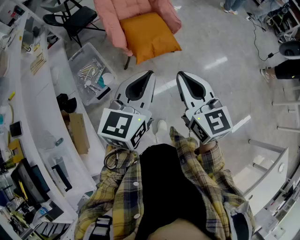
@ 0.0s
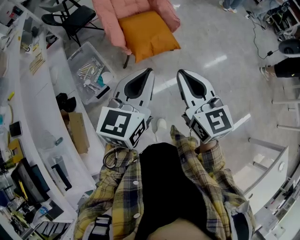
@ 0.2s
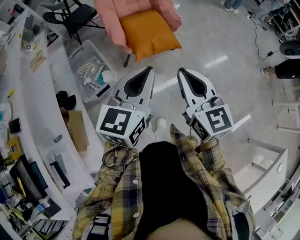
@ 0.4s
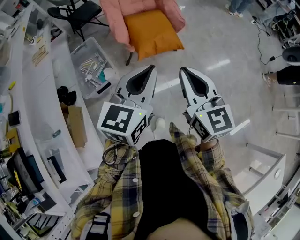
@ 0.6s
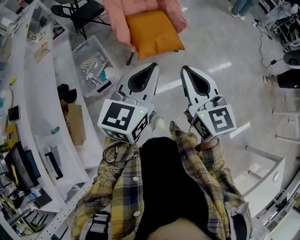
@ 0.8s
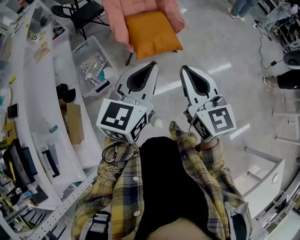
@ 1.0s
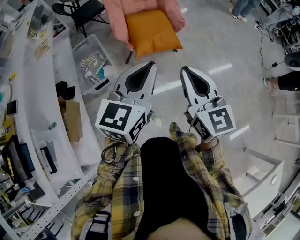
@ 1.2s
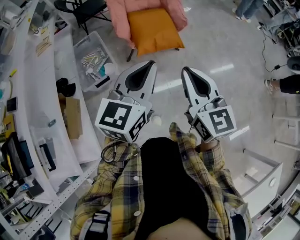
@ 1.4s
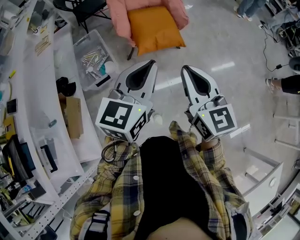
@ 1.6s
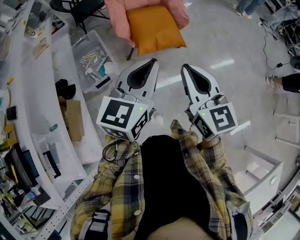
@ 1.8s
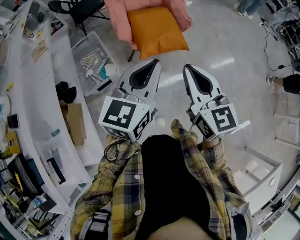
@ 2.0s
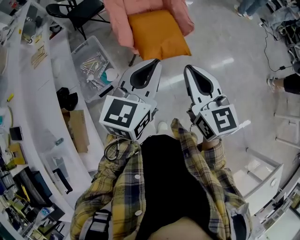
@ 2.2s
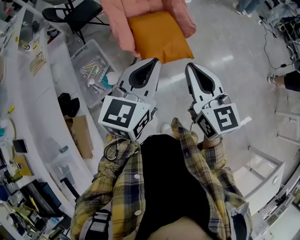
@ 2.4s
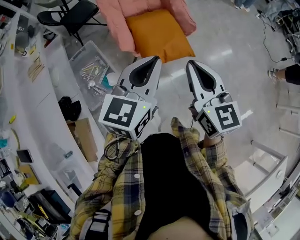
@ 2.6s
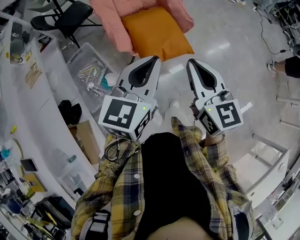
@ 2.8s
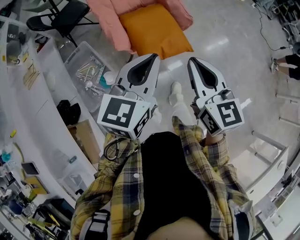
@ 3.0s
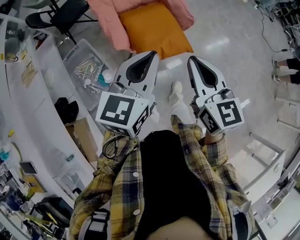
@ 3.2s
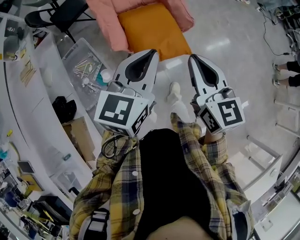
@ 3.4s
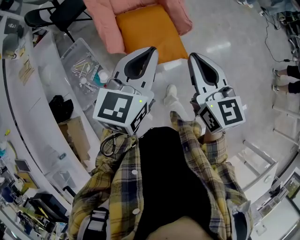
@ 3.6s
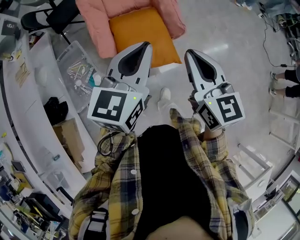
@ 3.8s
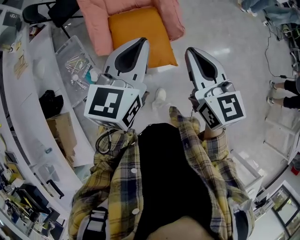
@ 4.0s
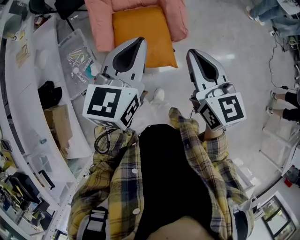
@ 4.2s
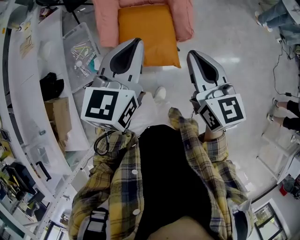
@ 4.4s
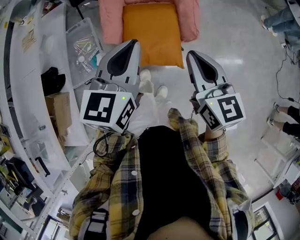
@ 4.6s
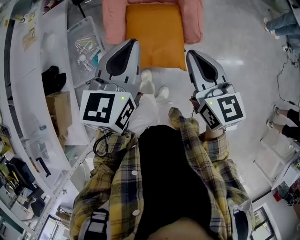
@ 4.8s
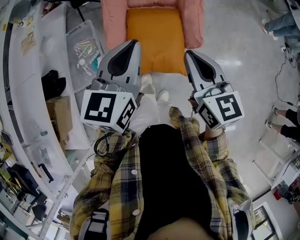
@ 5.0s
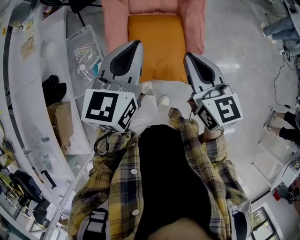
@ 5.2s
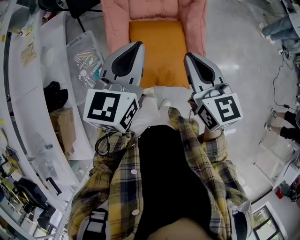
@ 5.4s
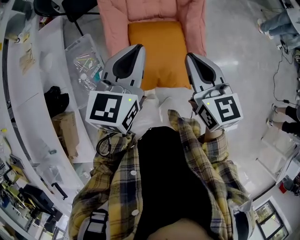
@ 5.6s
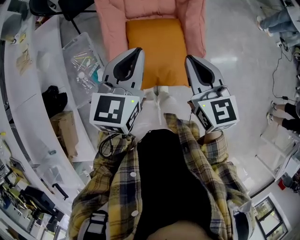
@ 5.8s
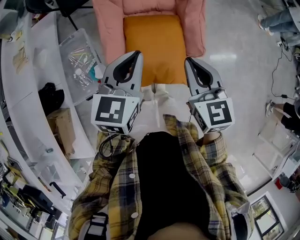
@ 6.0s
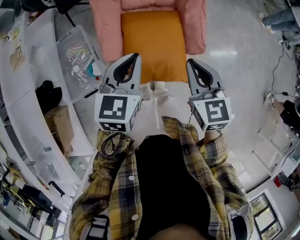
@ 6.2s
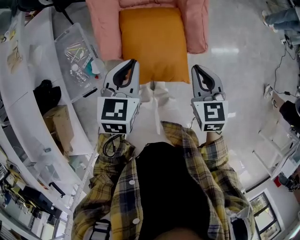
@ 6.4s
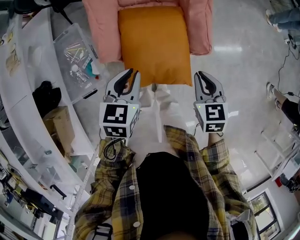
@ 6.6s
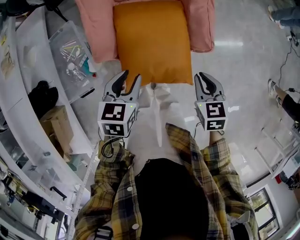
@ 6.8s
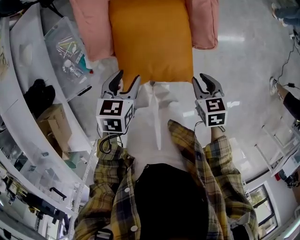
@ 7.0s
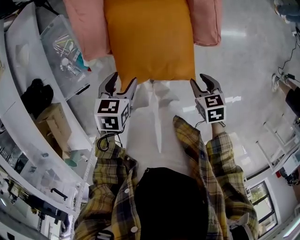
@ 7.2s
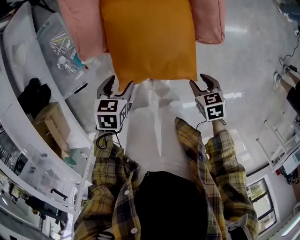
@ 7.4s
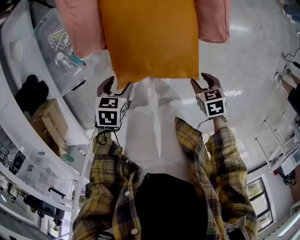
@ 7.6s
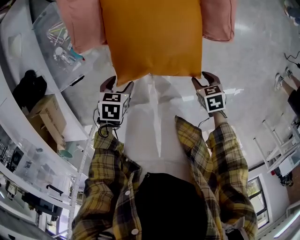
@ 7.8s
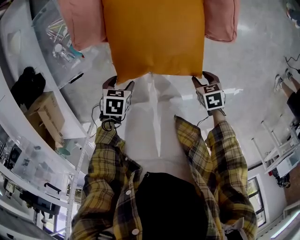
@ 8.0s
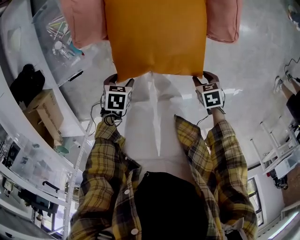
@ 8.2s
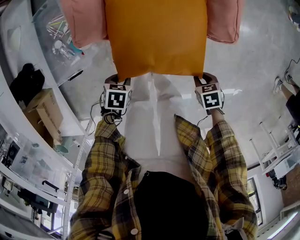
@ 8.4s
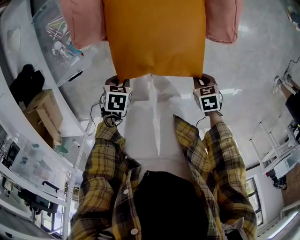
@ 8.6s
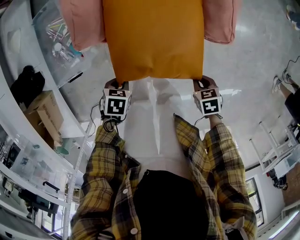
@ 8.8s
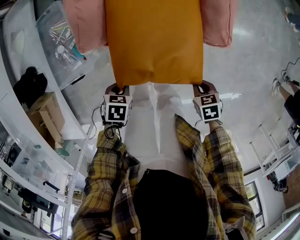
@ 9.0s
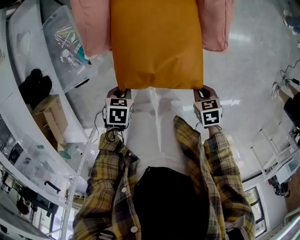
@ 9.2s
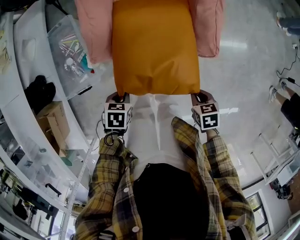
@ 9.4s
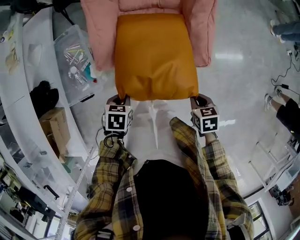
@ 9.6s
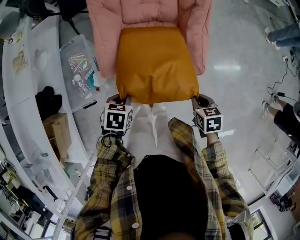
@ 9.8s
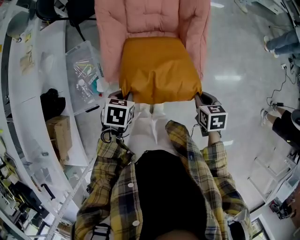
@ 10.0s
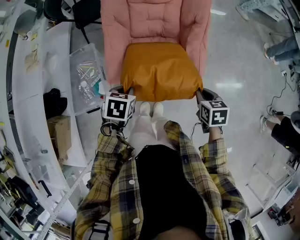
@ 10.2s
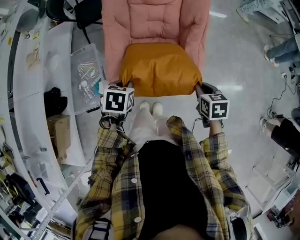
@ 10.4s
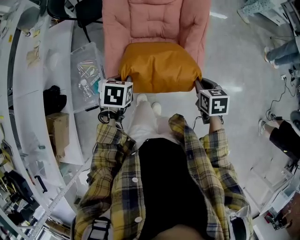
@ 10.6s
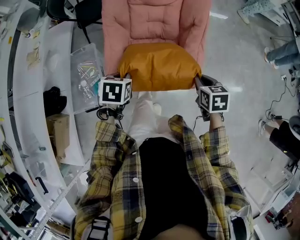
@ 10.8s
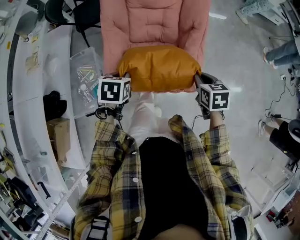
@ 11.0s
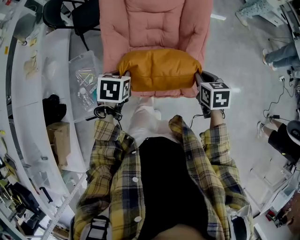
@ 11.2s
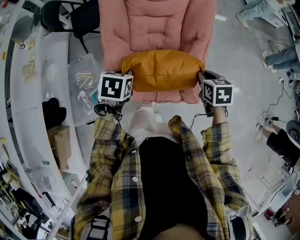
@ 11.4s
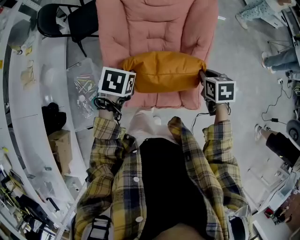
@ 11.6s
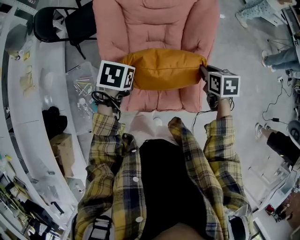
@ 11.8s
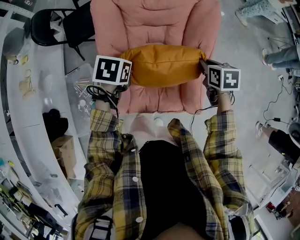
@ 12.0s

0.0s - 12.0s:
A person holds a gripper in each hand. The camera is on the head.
0.0s - 1.6s: There are only small adjustments of the grippers.
1.6s - 3.0s: Both grippers move forward and to the left, about 25 cm.
3.0s - 4.4s: Both grippers travel together forward and to the right, some 20 cm. The left gripper turns by some 20 degrees.
4.4s - 6.0s: The two grippers go about 15 cm forward, to the left and downward.
6.0s - 7.6s: Both grippers travel together downward, approximately 40 cm. The right gripper angles its fingers downward, by about 50 degrees, and opens its fingers; the left gripper tips its fingers downward by approximately 40 degrees, and opens.
7.6s - 9.0s: The right gripper closes; the left gripper travels downward and back again, some 10 cm each way, and closes.
9.0s - 10.4s: Both grippers travel together upward, some 30 cm. The left gripper rotates approximately 20 degrees; the right gripper swivels roughly 30 degrees.
10.4s - 12.0s: The two grippers go approximately 30 cm forward.

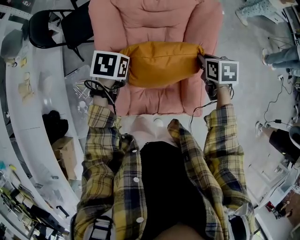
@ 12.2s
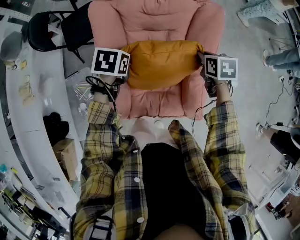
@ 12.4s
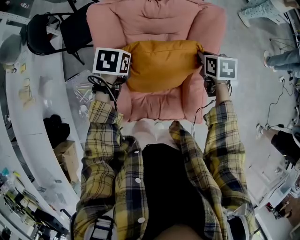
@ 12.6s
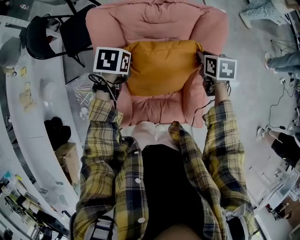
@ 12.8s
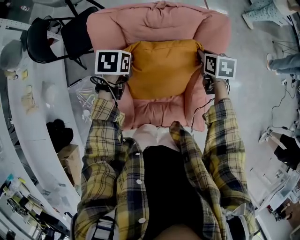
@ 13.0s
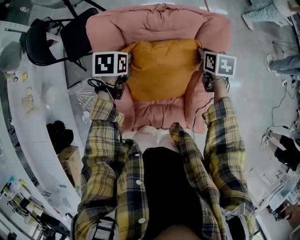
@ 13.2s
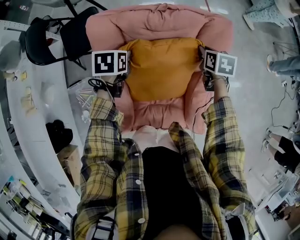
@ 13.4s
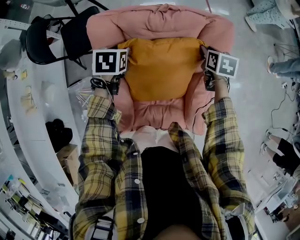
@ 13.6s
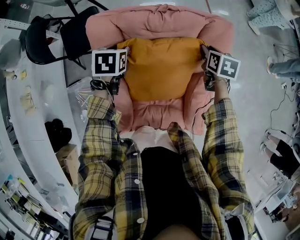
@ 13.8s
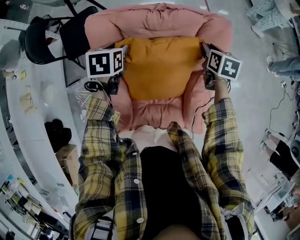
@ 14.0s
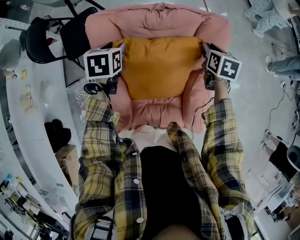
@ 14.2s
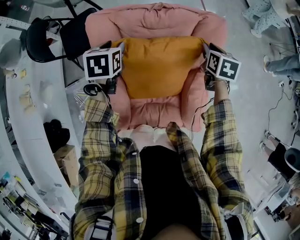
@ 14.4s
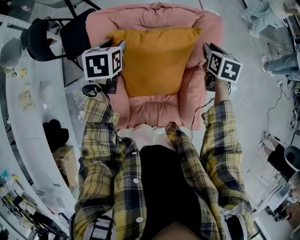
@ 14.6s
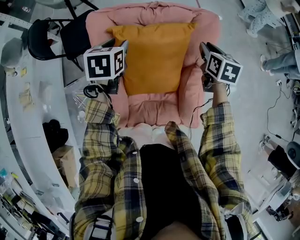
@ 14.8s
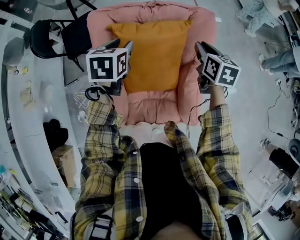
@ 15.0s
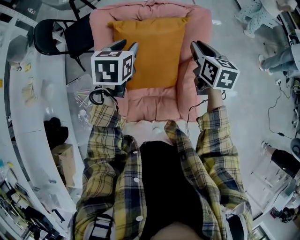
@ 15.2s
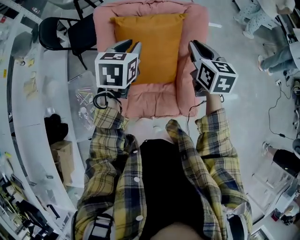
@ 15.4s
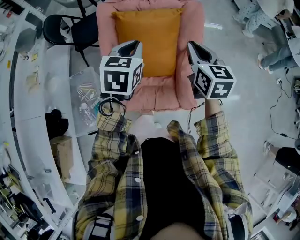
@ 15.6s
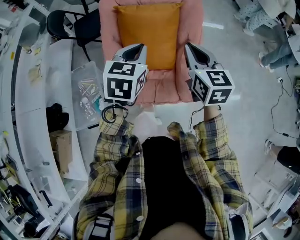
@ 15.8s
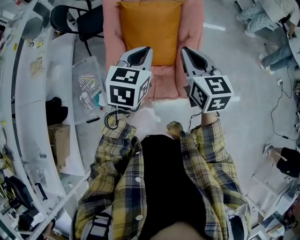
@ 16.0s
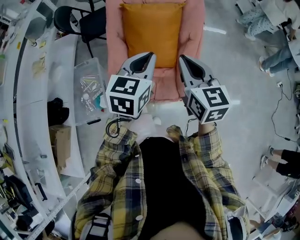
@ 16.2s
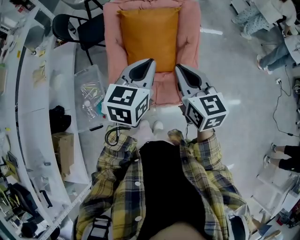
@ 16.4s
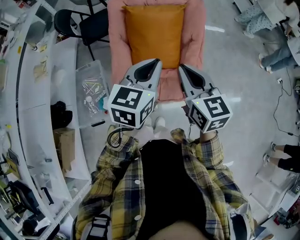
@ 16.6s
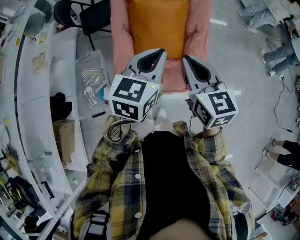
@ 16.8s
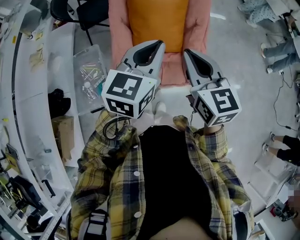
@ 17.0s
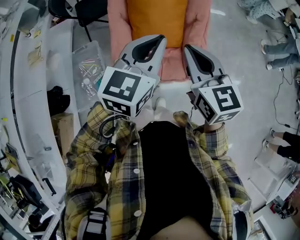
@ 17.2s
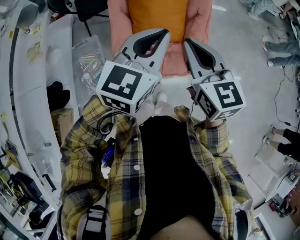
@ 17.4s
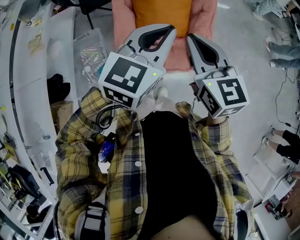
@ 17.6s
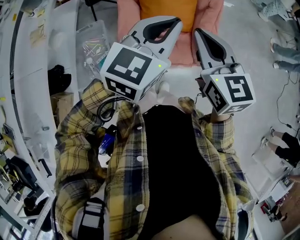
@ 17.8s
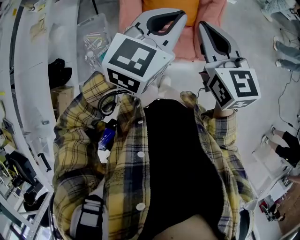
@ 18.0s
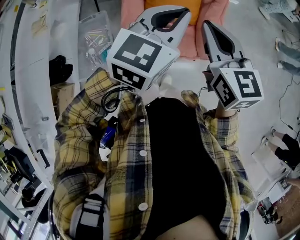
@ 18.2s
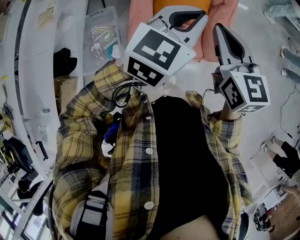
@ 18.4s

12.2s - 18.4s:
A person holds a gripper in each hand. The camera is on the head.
12.2s - 13.8s: The grippers both shift forward by about 20 cm. The left gripper opens up.
13.8s - 15.4s: The left gripper is displaced backward, upward and to the right by roughly 30 cm, and changes its angle by about 20 degrees, while the right gripper travels backward and upward by about 30 cm, and swivels some 30 degrees.
15.4s - 16.8s: The grippers both shift backward by approximately 25 cm.
16.8s - 18.4s: The grippers move only a little.

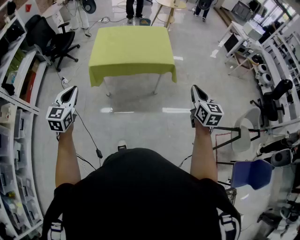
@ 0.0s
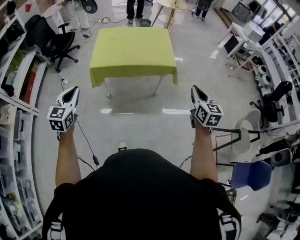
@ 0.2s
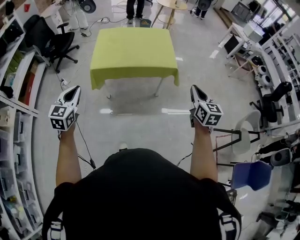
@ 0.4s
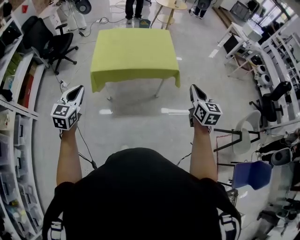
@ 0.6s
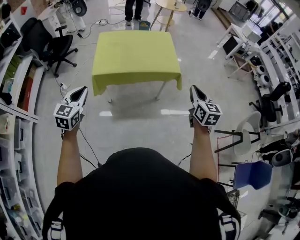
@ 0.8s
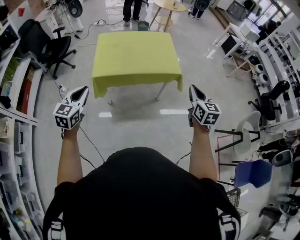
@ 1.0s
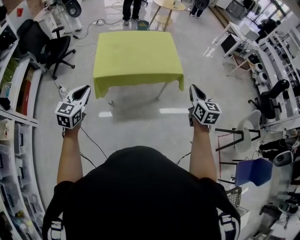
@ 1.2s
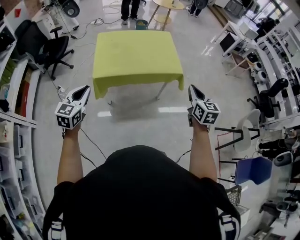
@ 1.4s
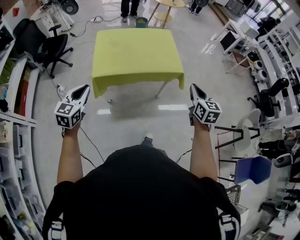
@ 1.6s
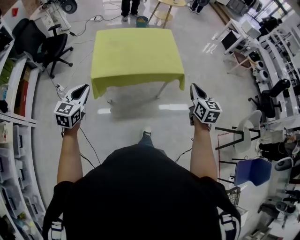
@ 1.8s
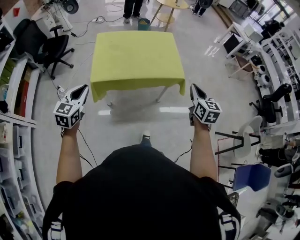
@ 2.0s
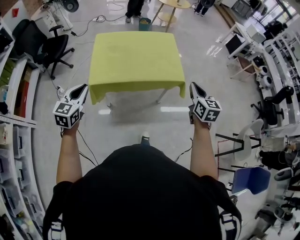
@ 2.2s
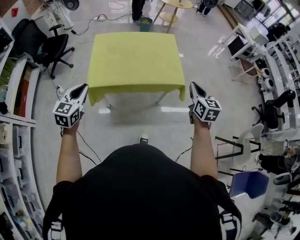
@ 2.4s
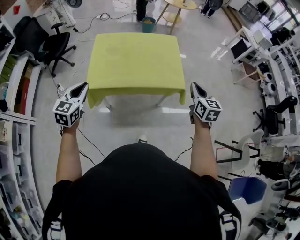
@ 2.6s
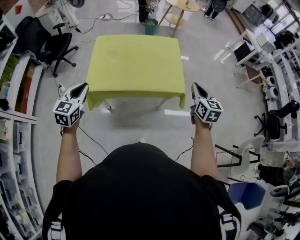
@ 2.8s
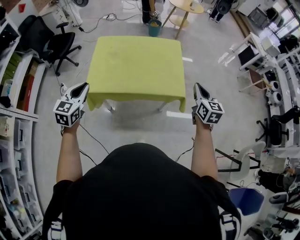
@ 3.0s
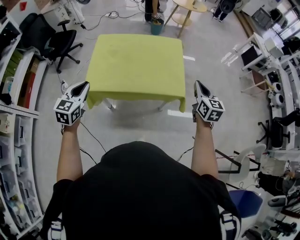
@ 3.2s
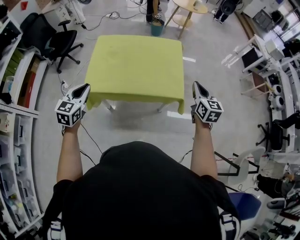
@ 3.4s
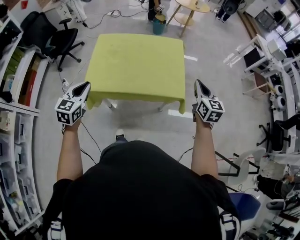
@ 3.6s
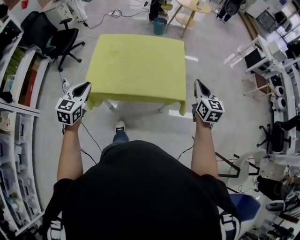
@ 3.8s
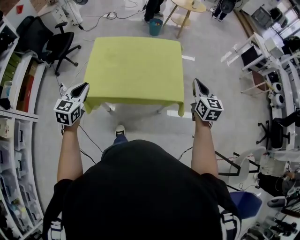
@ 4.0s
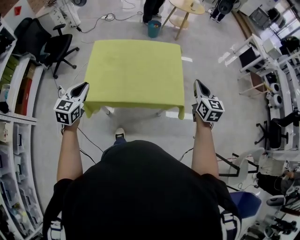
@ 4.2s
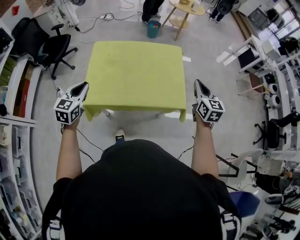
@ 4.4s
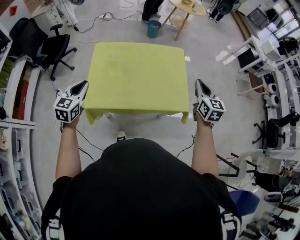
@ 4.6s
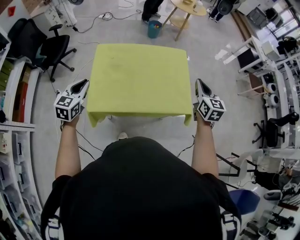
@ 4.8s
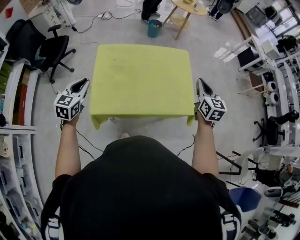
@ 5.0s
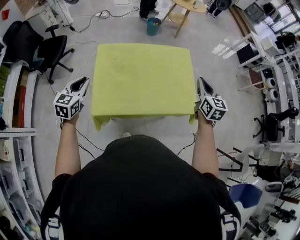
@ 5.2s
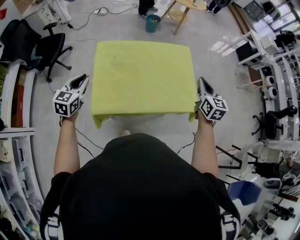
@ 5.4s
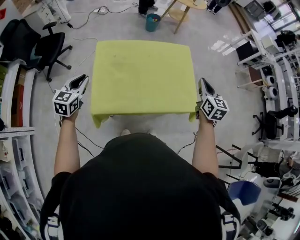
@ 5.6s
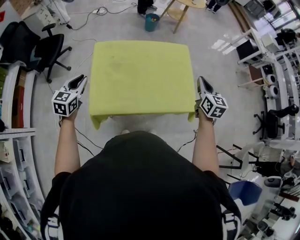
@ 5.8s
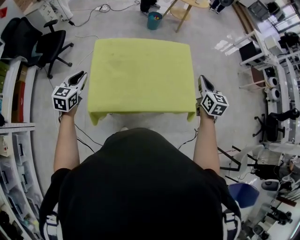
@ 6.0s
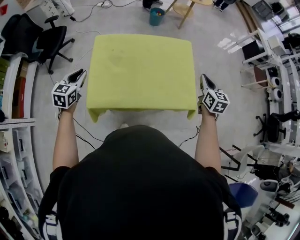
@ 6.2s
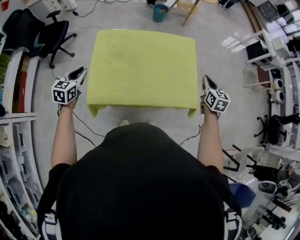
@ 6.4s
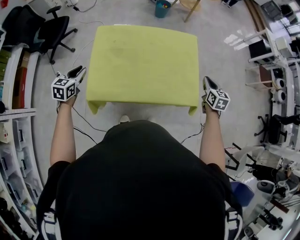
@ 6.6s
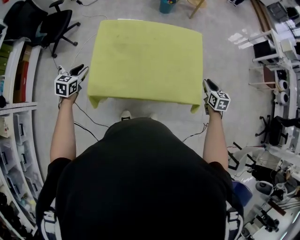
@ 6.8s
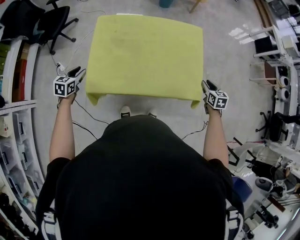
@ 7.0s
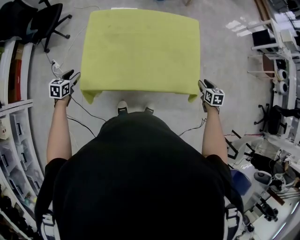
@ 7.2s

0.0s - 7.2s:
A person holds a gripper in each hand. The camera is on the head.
0.0s - 1.4s: The left gripper travels forward and to the left by approximately 25 cm; the right gripper goes approximately 25 cm to the left and forward.
1.4s - 2.8s: The grippers both shift forward by roughly 30 cm.
2.8s - 4.4s: Both grippers move forward, some 20 cm.
4.4s - 5.8s: Both grippers travel together to the left and forward, about 20 cm.
5.8s - 7.2s: The left gripper moves downward, approximately 25 cm, rotates about 30 degrees, and opens. Meanwhile the right gripper travels downward and to the right by some 35 cm, tips its fingers downward by some 30 degrees, and opens its fingers.
